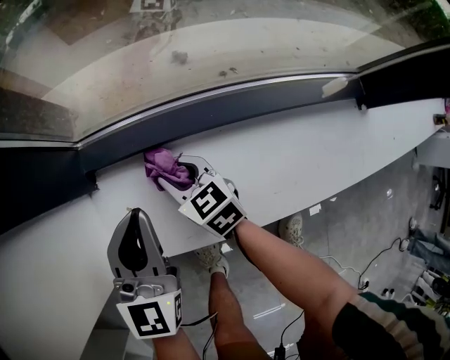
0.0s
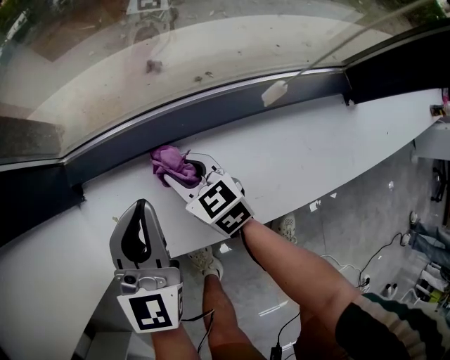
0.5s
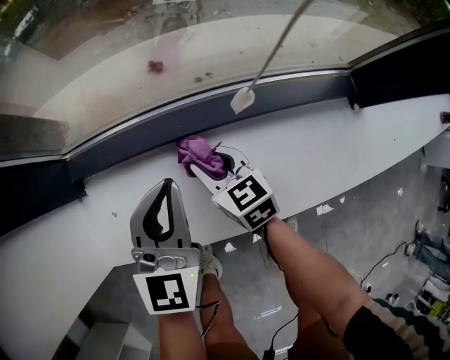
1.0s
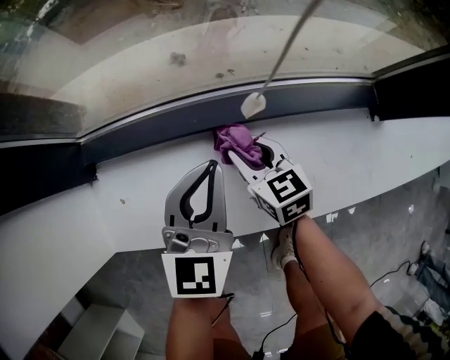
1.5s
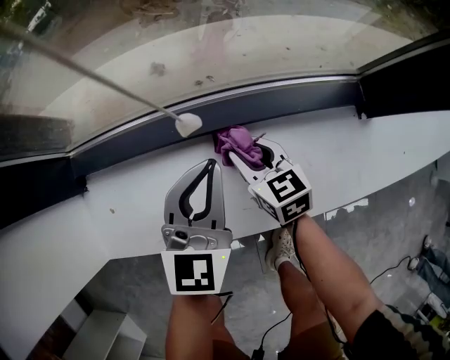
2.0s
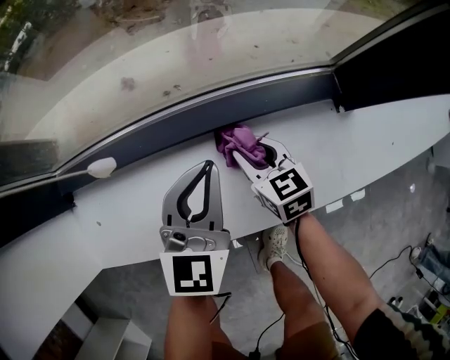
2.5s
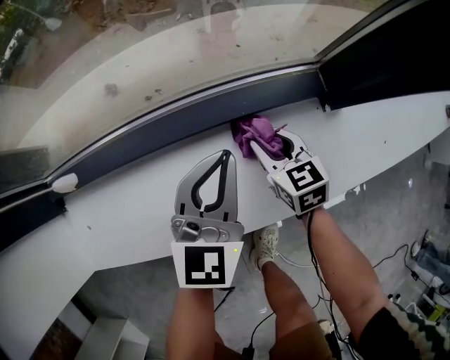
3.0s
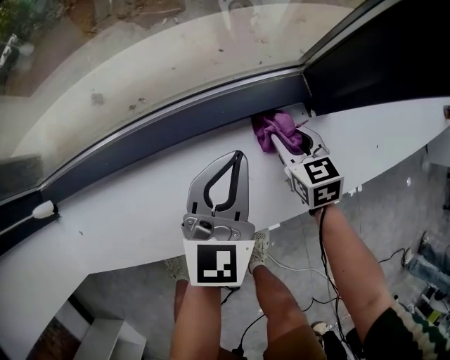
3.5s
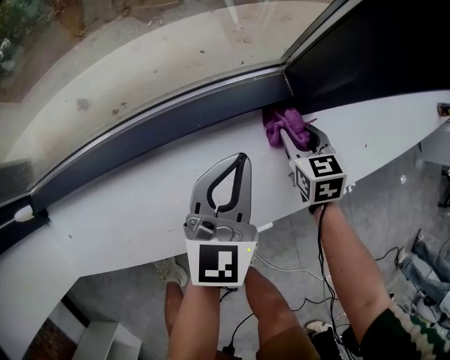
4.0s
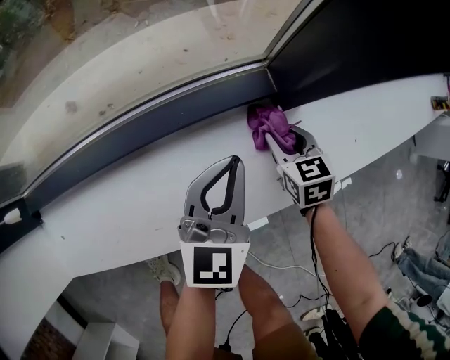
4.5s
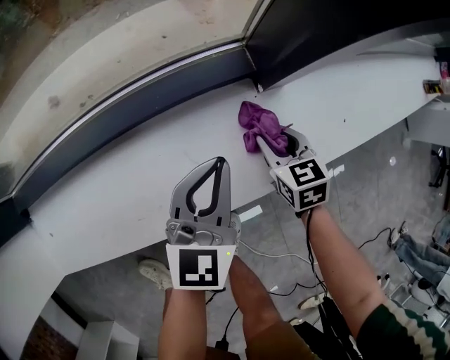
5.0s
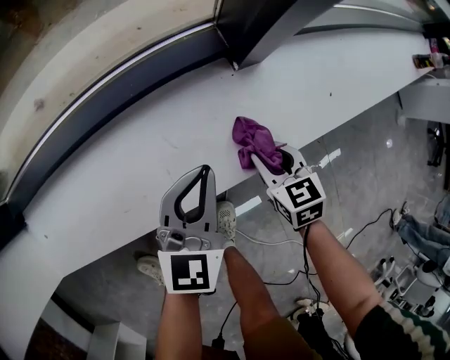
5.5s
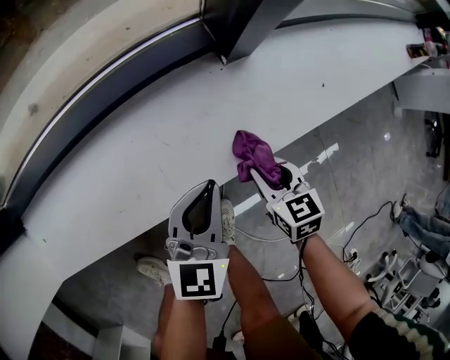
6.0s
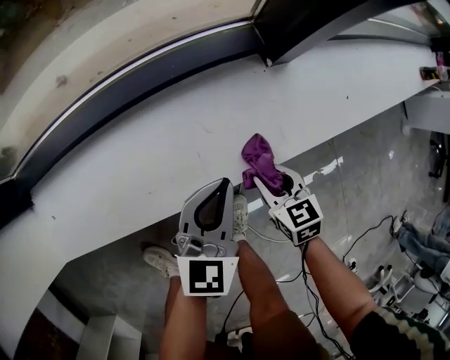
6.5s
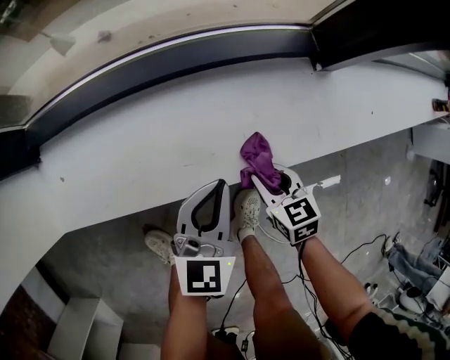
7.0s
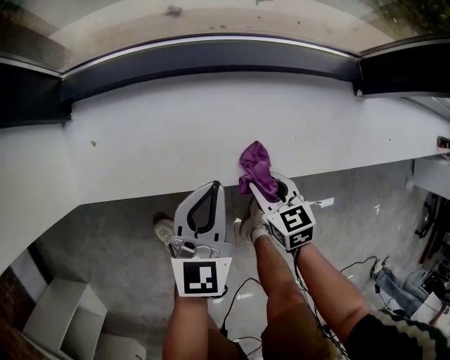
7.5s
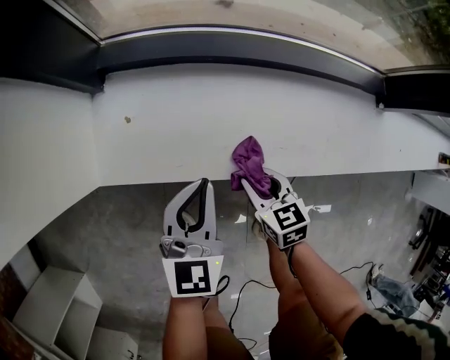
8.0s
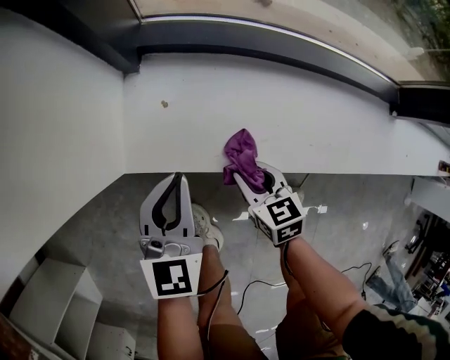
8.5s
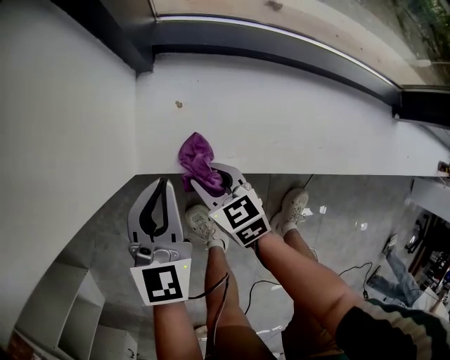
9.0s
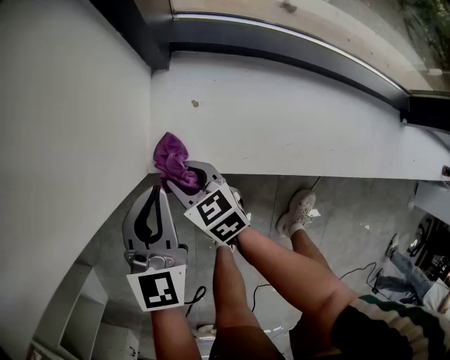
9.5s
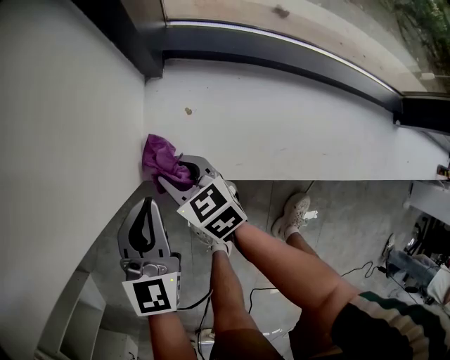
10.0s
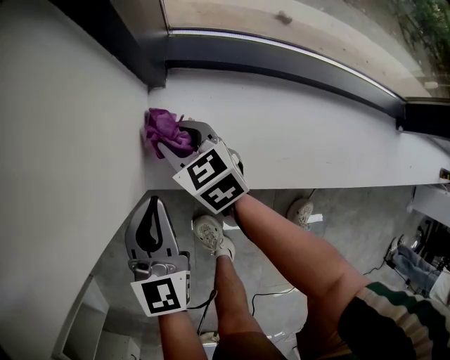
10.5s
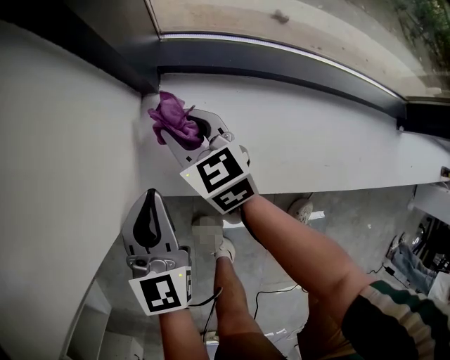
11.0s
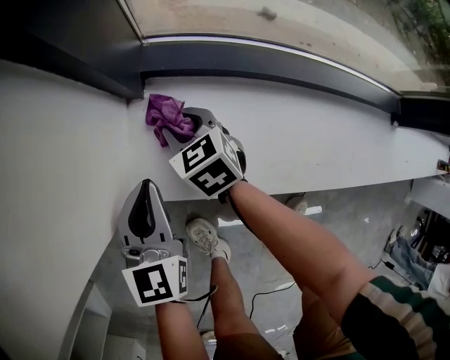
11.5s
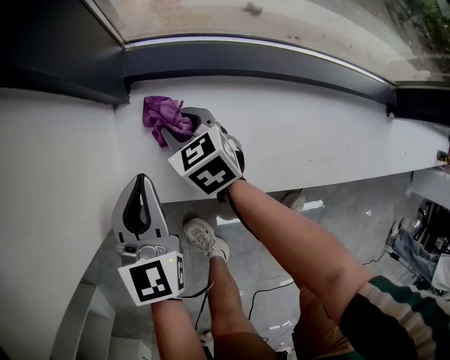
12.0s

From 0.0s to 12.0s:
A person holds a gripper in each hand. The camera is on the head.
From 0.0s to 2.0s: The grippers both shift to the right by roughly 25 cm.
From 2.0s to 4.0s: The two grippers go about 30 cm to the right. The right gripper changes its angle by about 30 degrees.
From 4.0s to 6.0s: The left gripper heads backward and to the right, covering about 15 cm; the right gripper is displaced backward by roughly 20 cm.
From 6.0s to 8.0s: Both grippers are carried some 40 cm. The left gripper changes its angle by some 30 degrees, while the right gripper swivels about 30 degrees.
From 8.0s to 10.0s: The left gripper shifts about 25 cm to the left, while the right gripper travels to the left and forward by approximately 35 cm, and turns by about 20 degrees.
From 10.0s to 12.0s: The left gripper goes roughly 10 cm to the right and forward. The right gripper moves to the right and forward, approximately 15 cm.

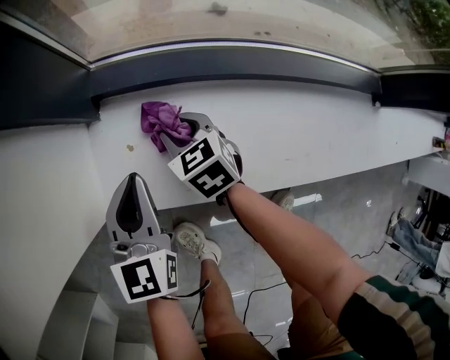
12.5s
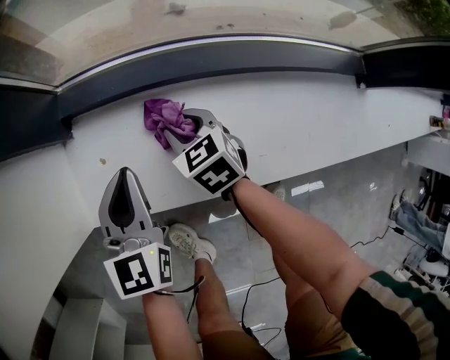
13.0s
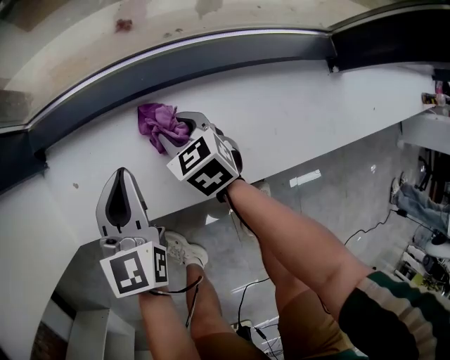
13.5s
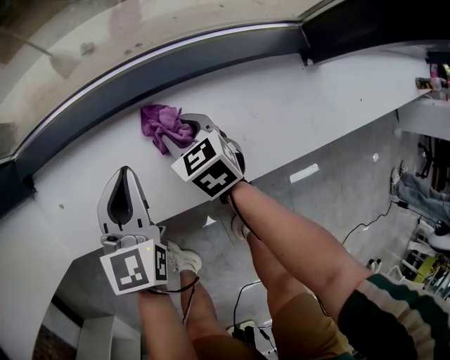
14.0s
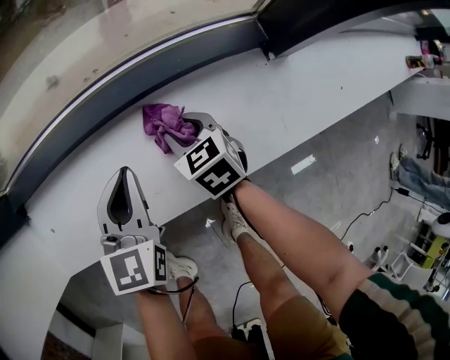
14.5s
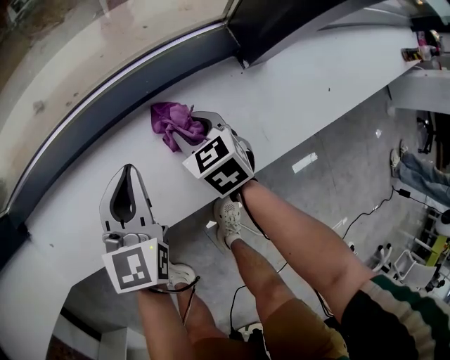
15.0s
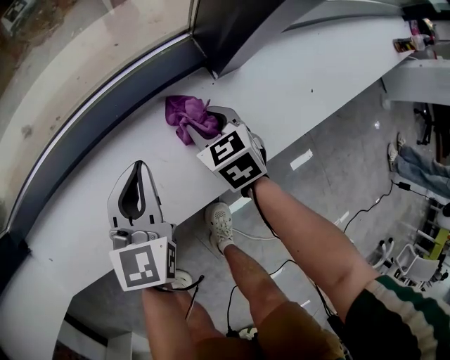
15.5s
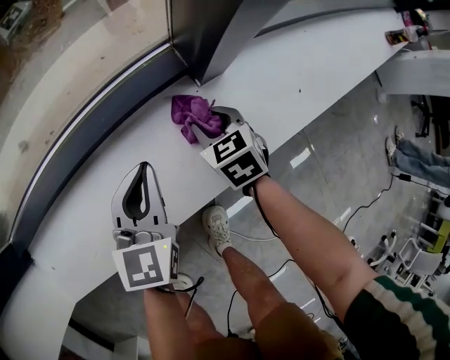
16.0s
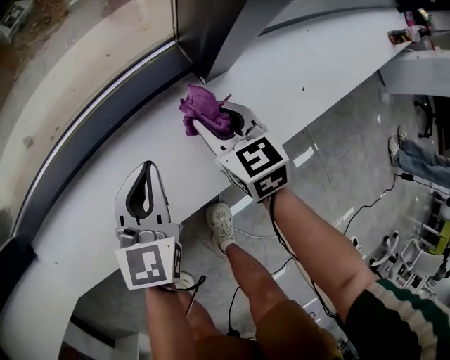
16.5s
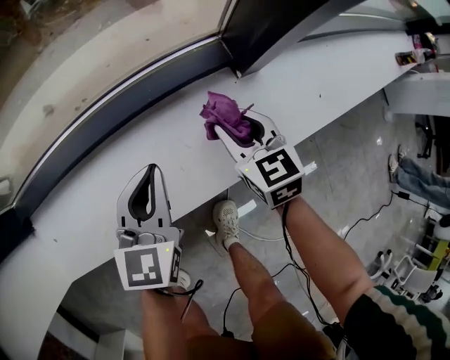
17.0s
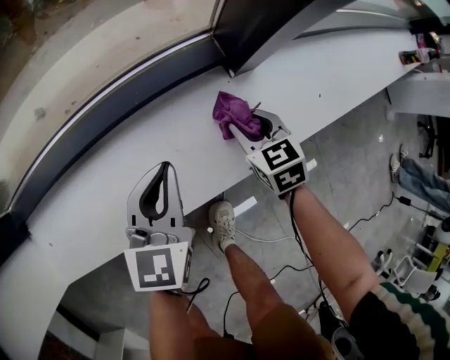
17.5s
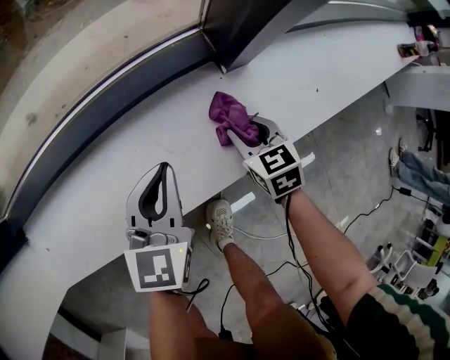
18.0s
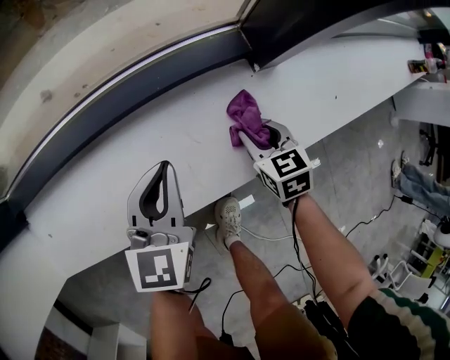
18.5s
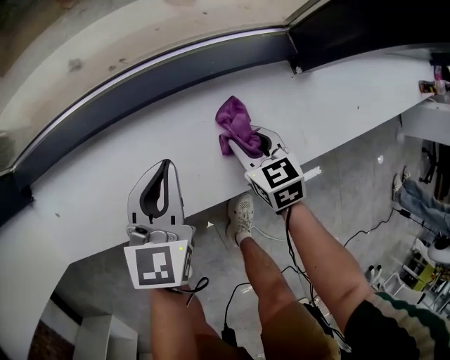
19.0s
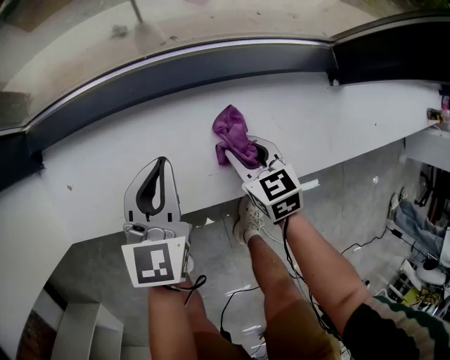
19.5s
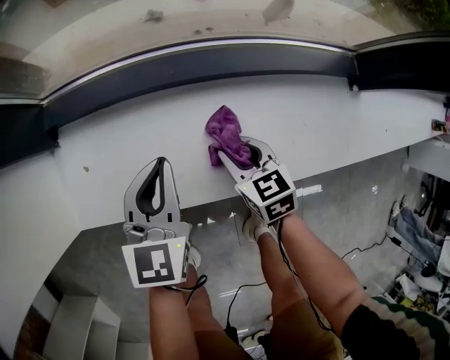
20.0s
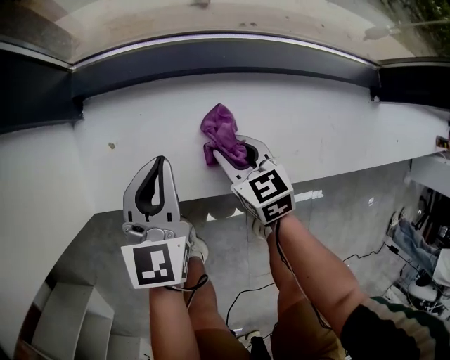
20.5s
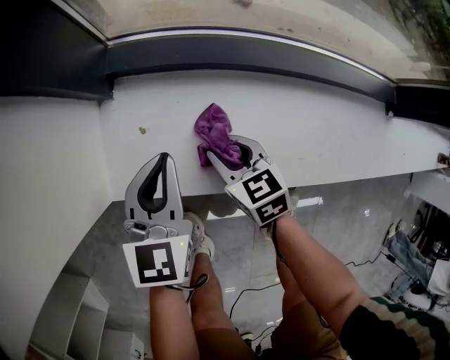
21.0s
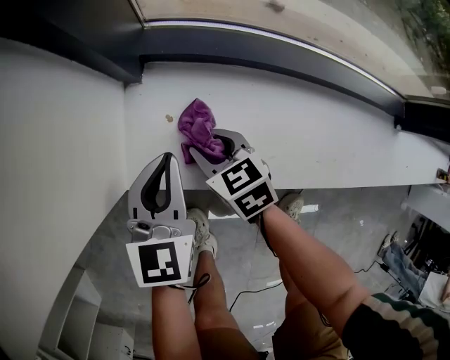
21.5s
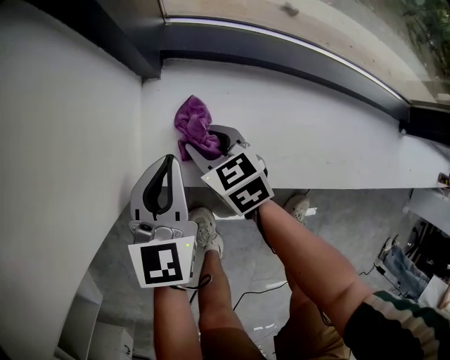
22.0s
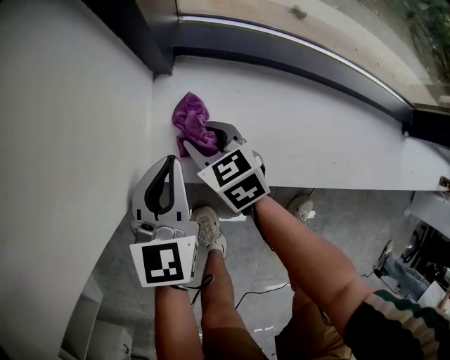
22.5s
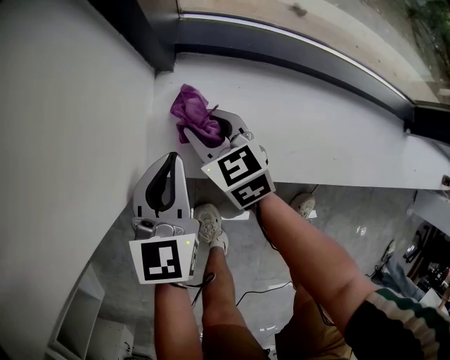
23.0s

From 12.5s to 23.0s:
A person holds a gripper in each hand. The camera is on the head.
From 12.5s to 14.5s: Both grippers move to the right, approximately 40 cm. The left gripper rotates some 20 degrees.
From 14.5s to 16.5s: Both grippers travel together to the right, about 25 cm. The right gripper swivels about 20 degrees.
From 16.5s to 19.0s: The left gripper swings left and right, roughly 20 cm each way, with 2 reversals; the right gripper swings left and right, approximately 15 cm each way, with 2 reversals.
From 19.0s to 21.0s: The right gripper shifts by roughly 40 cm, and swivels approximately 20 degrees. Meanwhile the left gripper ends up approximately 35 cm from where it was, and swivels about 20 degrees.
From 21.0s to 23.0s: The left gripper goes approximately 10 cm to the left, while the right gripper is displaced to the left and forward by approximately 15 cm.

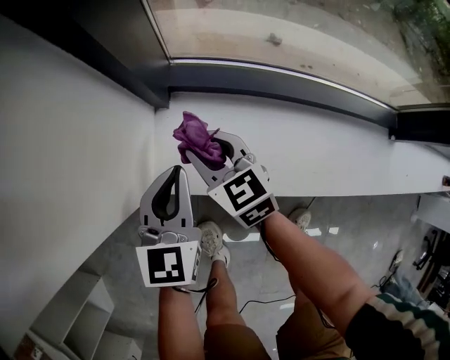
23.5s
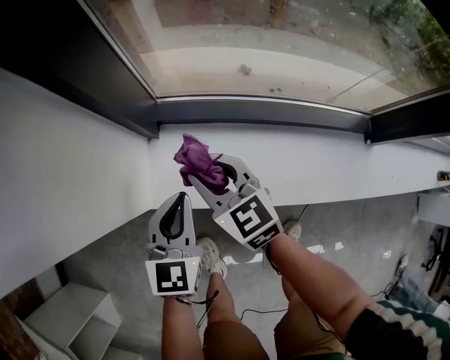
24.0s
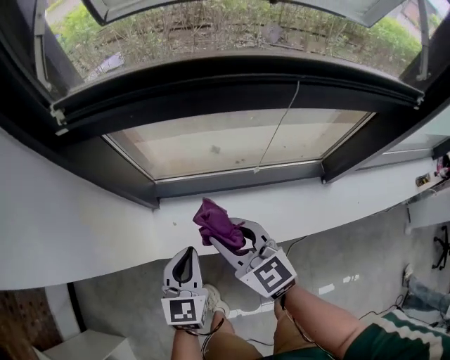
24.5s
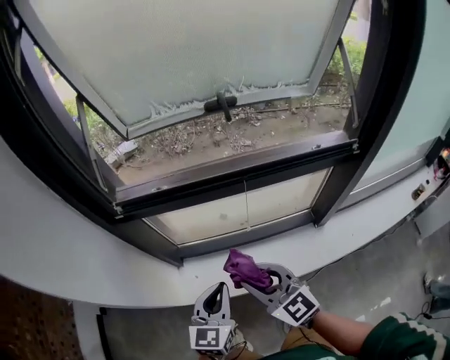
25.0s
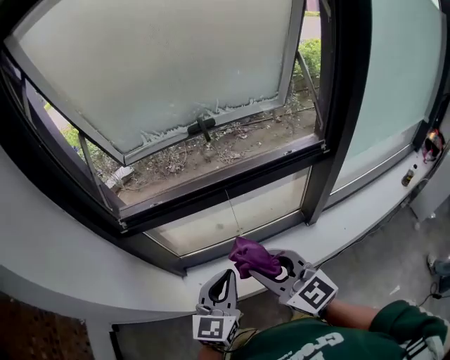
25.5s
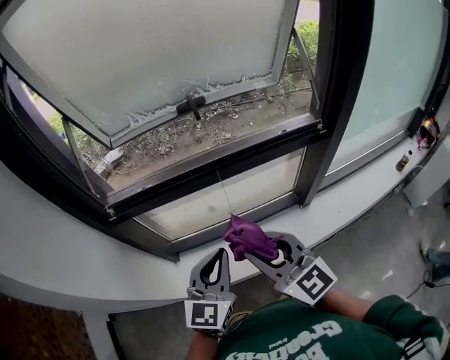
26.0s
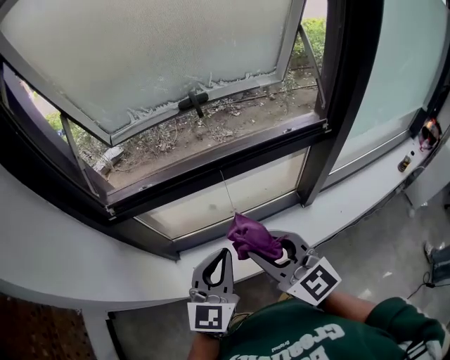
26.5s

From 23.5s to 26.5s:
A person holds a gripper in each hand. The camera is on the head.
From 23.5s to 25.0s: Both grippers move upward and to the right, roughly 50 cm. The right gripper turns by some 20 degrees.
From 25.0s to 26.5s: The two grippers go approximately 15 cm upward and to the right.

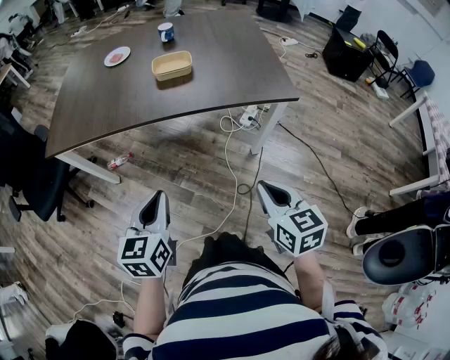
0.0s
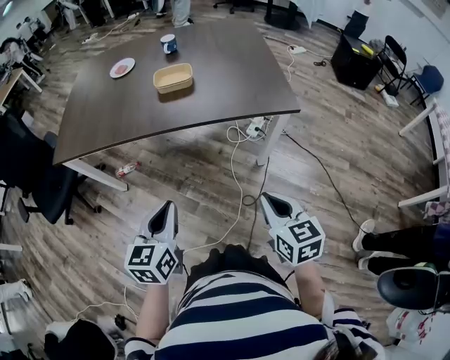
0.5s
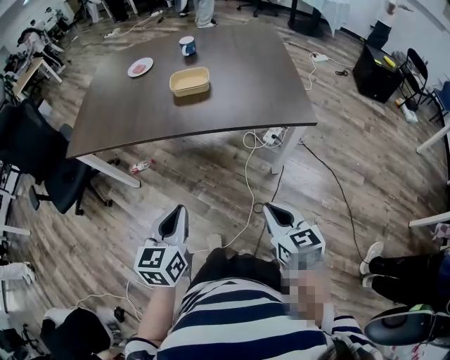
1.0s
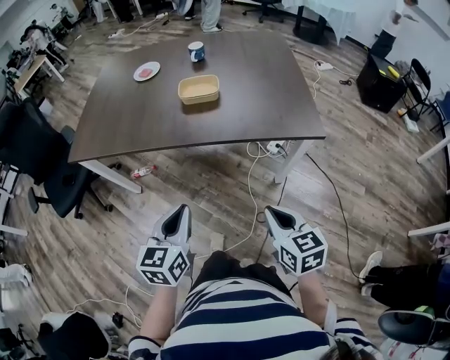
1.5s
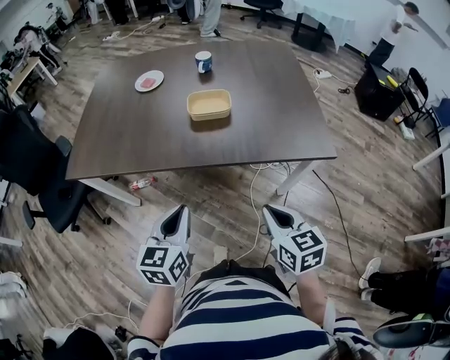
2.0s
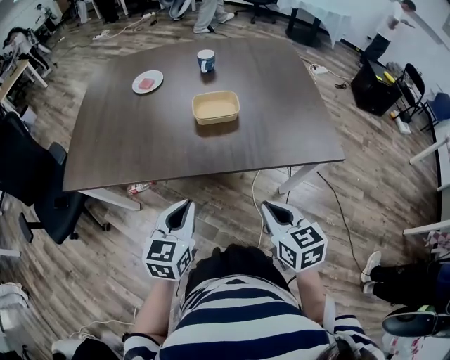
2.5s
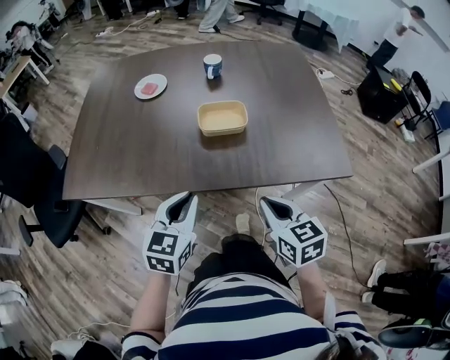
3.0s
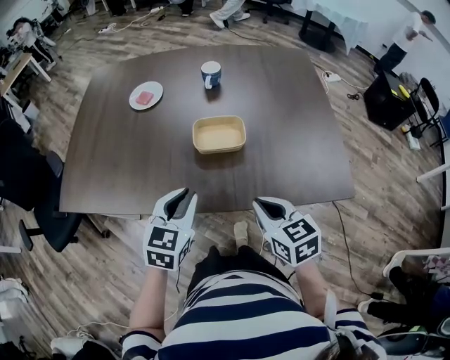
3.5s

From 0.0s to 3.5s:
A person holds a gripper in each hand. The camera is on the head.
From 0.0s to 2.0s: The two grippers go about 15 cm forward.
From 2.0s to 3.5s: Both grippers move forward, approximately 25 cm.
